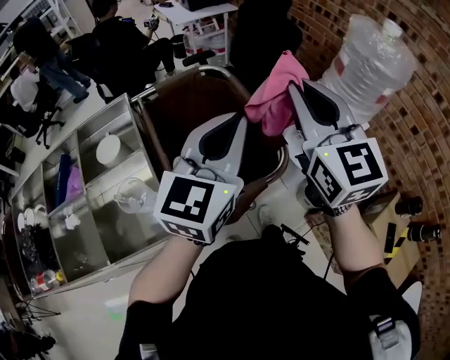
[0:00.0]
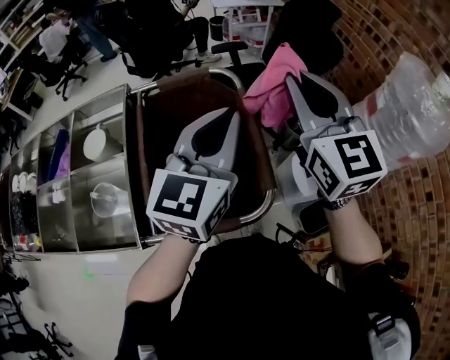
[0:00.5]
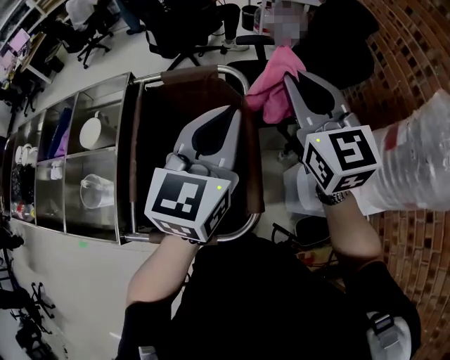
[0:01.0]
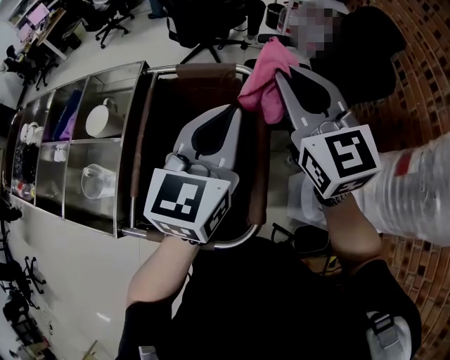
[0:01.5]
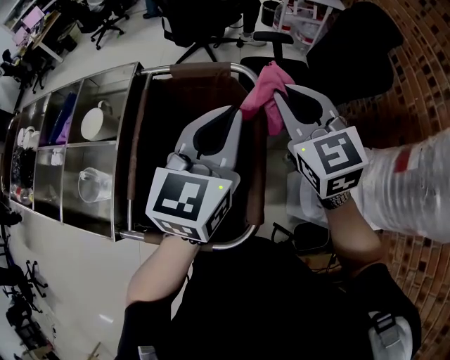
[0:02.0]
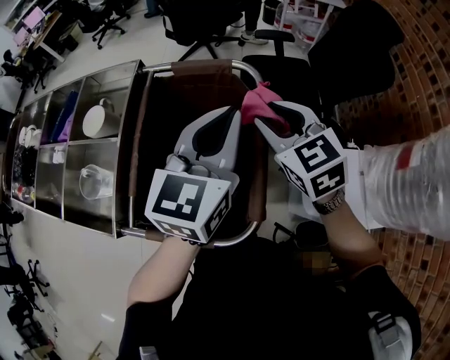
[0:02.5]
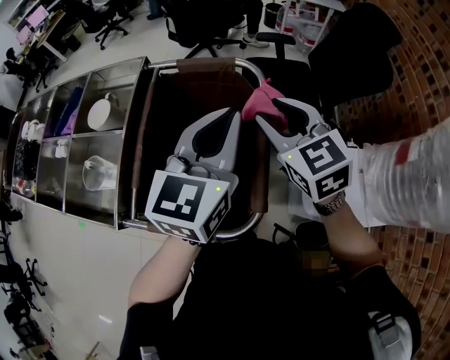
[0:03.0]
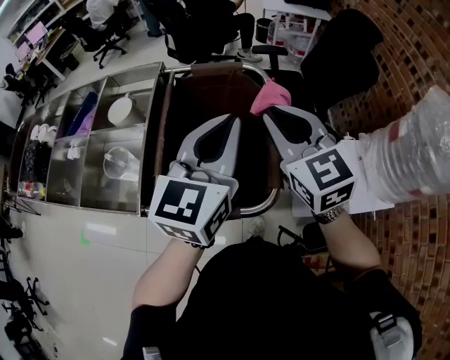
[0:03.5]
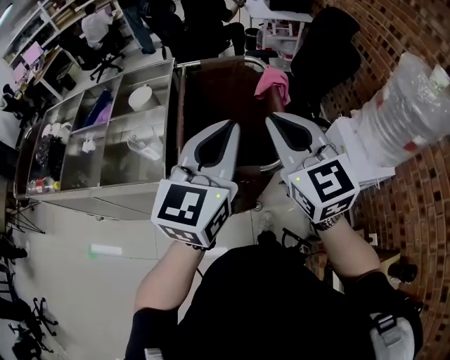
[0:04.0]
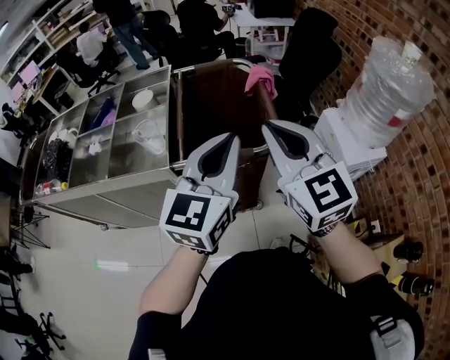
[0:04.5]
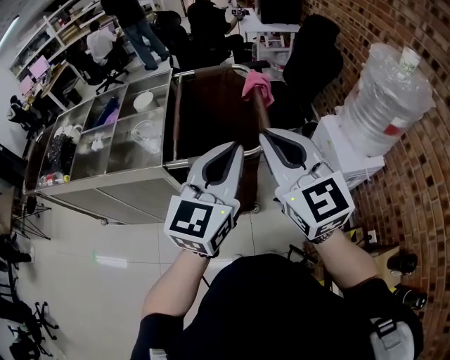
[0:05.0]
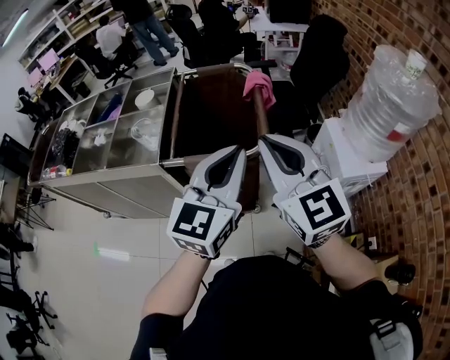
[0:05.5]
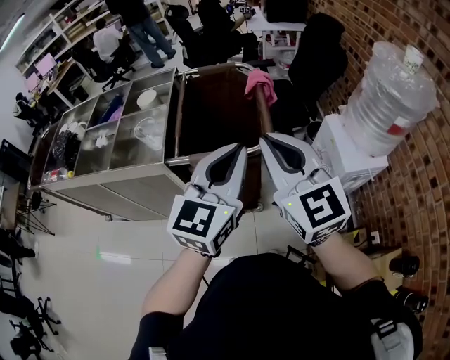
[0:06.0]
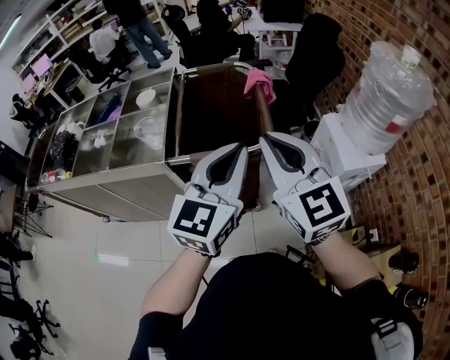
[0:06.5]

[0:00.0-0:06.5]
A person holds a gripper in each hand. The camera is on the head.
0:00.0 to 0:02.0: The left gripper ends up approximately 25 cm from where it was, and turns by about 40 degrees. Meanwhile the right gripper ends up about 30 cm from where it was, and turns by roughly 40 degrees.
0:02.0 to 0:04.5: The grippers both shift backward and to the left by approximately 40 cm. The right gripper opens, then closes again.
0:04.5 to 0:06.5: The left gripper moves roughly 5 cm.

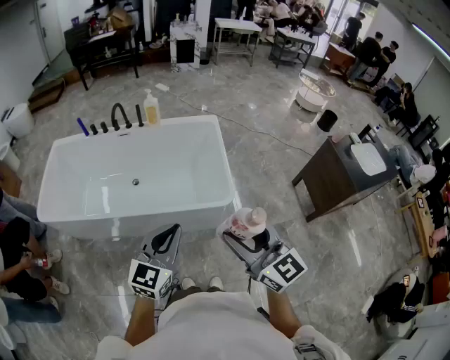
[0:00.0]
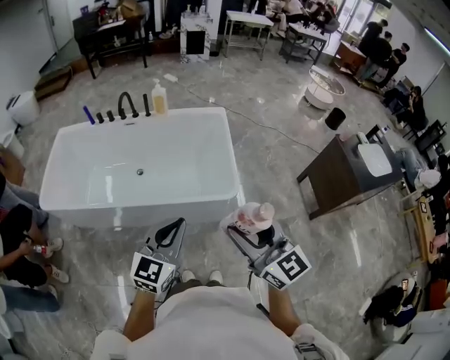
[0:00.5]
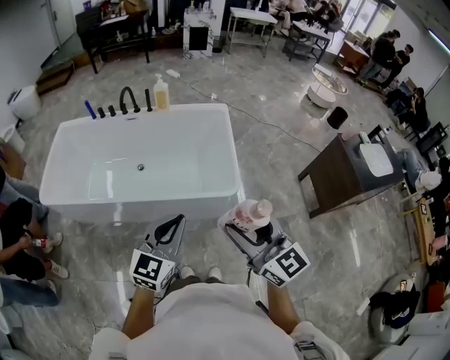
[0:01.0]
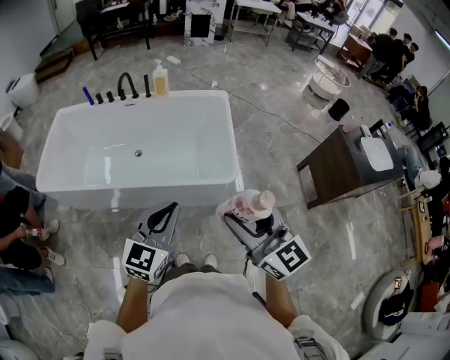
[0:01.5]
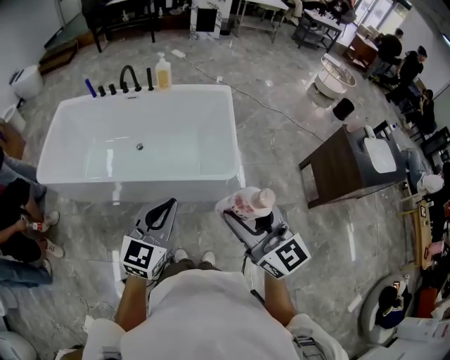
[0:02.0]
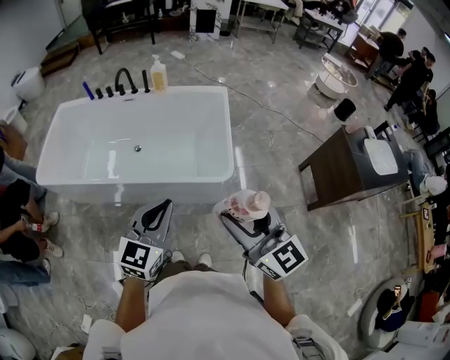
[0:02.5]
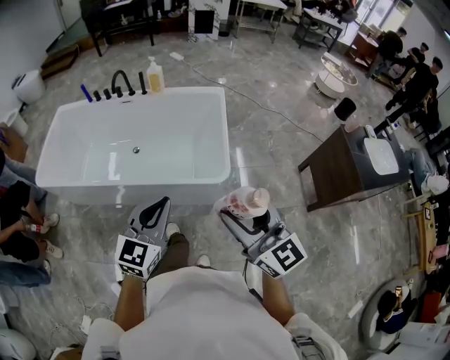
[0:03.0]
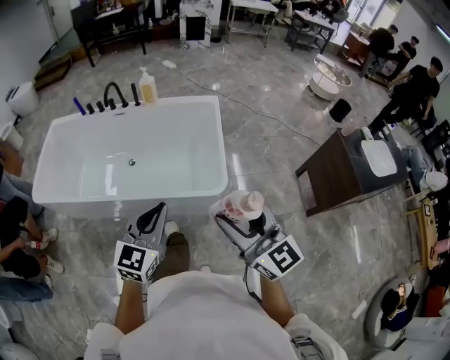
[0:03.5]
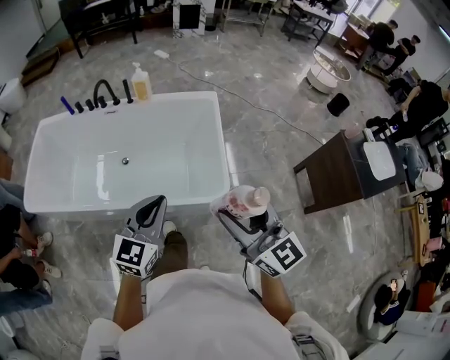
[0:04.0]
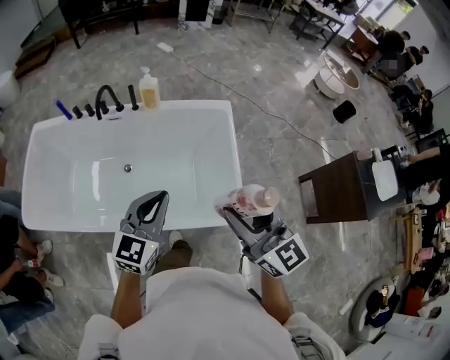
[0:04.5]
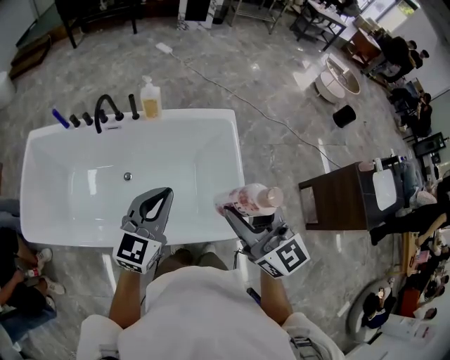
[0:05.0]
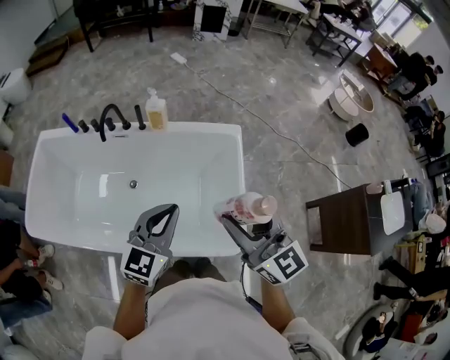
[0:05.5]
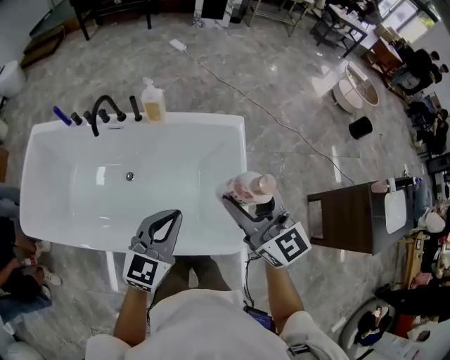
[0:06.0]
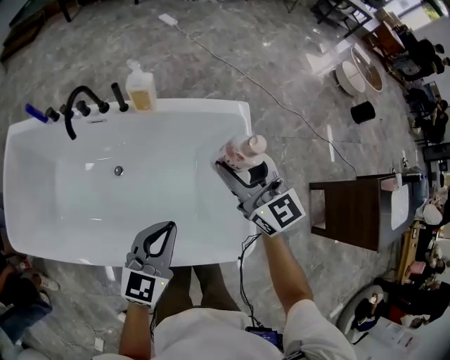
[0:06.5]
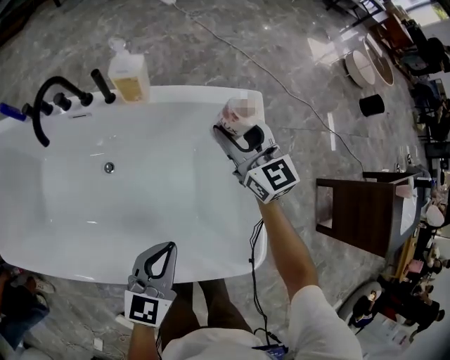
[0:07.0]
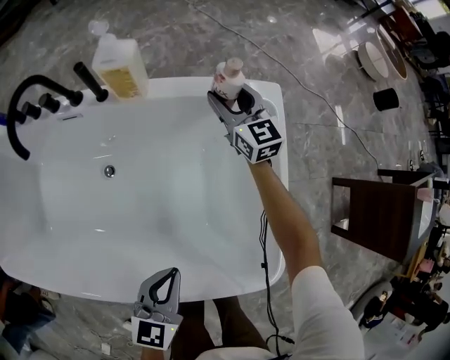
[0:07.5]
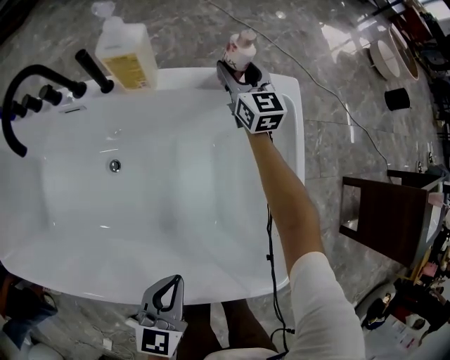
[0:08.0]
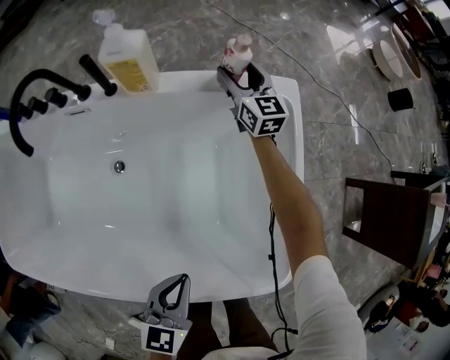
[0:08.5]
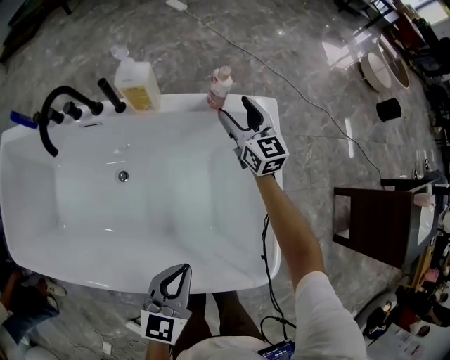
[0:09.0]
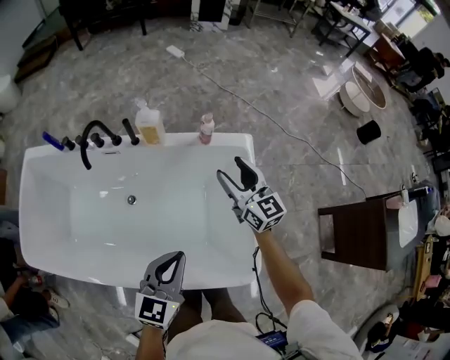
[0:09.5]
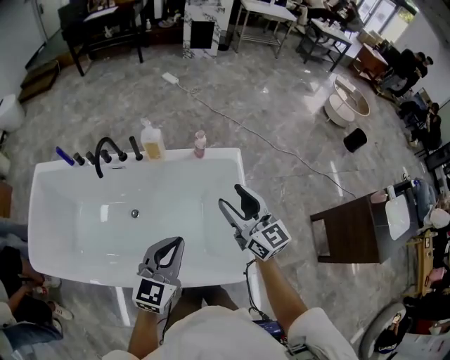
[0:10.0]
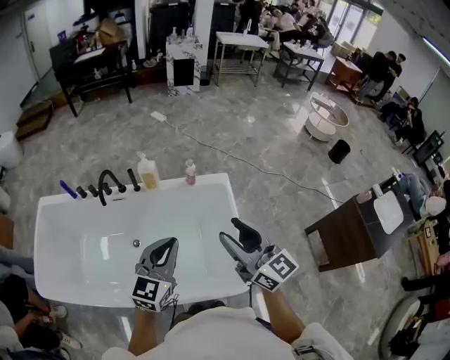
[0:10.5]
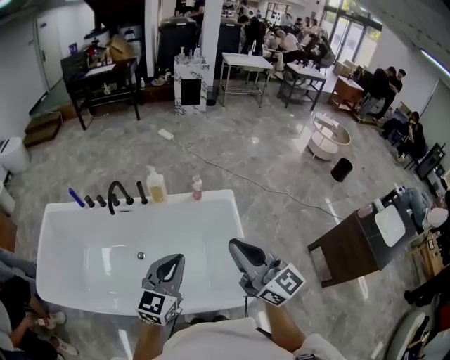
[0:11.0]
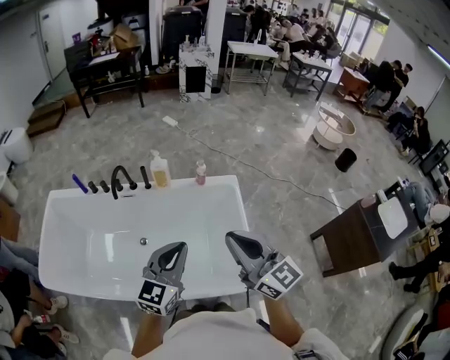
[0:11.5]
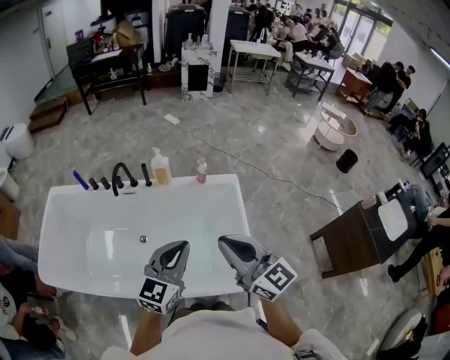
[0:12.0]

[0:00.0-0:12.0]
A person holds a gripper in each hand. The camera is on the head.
0:00.0 to 0:02.0: The two grippers keep their place.
0:02.0 to 0:04.0: Both grippers travel together forward, approximately 15 cm.
0:04.0 to 0:06.0: The two grippers go some 30 cm forward.
0:06.0 to 0:08.0: The left gripper travels downward by roughly 35 cm, and changes its angle by about 30 degrees, while the right gripper heads forward and downward, covering about 70 cm.
0:08.0 to 0:10.0: The right gripper shifts roughly 60 cm upward and backward, while the left gripper travels upward by approximately 35 cm, and changes its angle by about 30 degrees.
0:10.0 to 0:12.0: The right gripper travels backward and upward by some 20 cm, and closes; the left gripper is displaced upward and backward by some 10 cm.

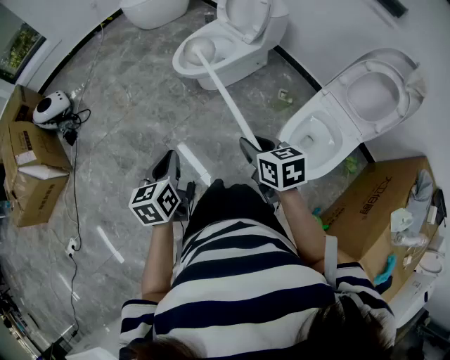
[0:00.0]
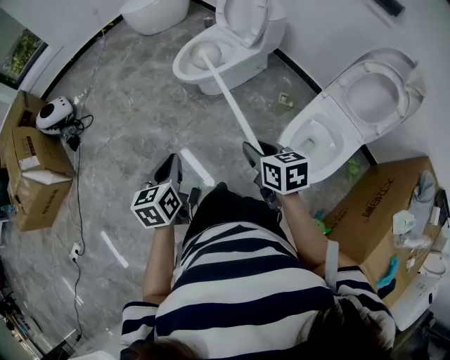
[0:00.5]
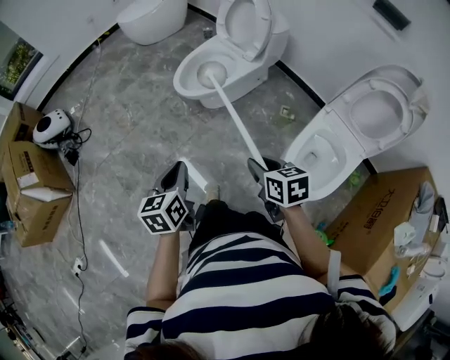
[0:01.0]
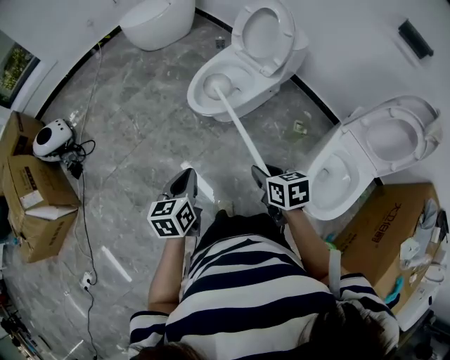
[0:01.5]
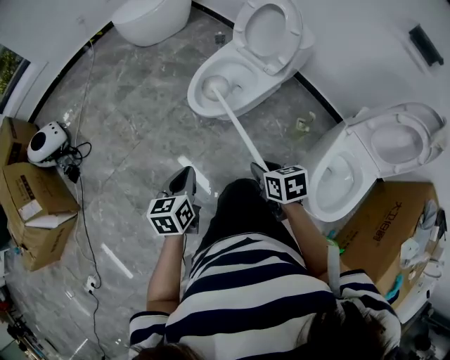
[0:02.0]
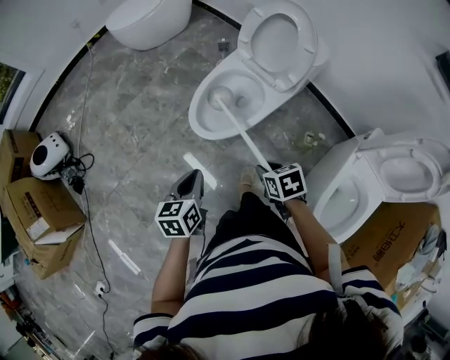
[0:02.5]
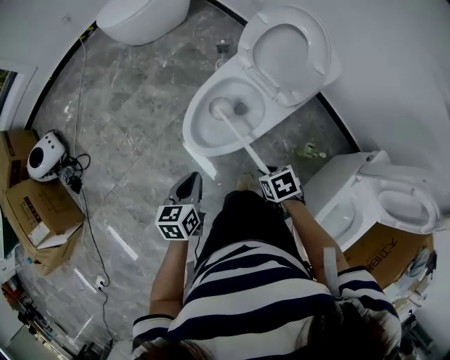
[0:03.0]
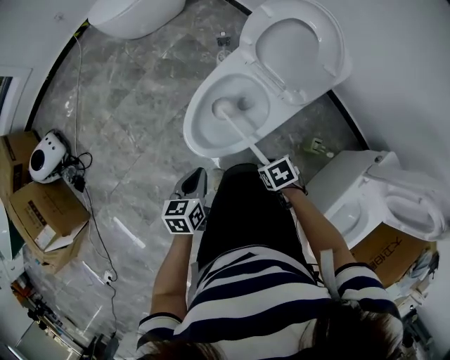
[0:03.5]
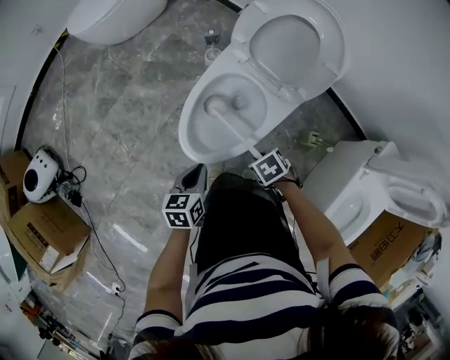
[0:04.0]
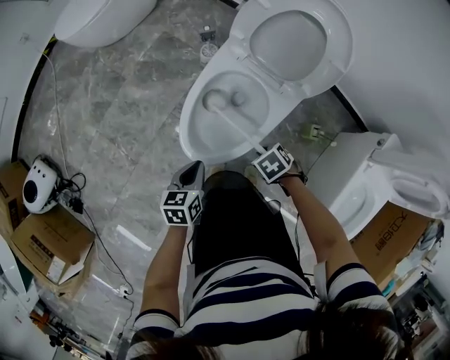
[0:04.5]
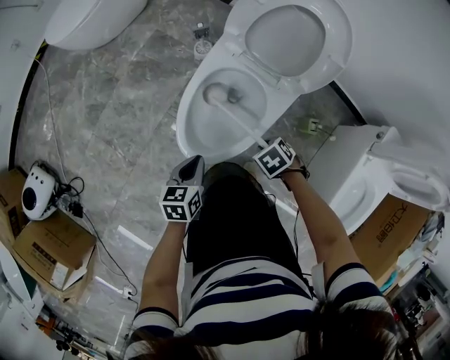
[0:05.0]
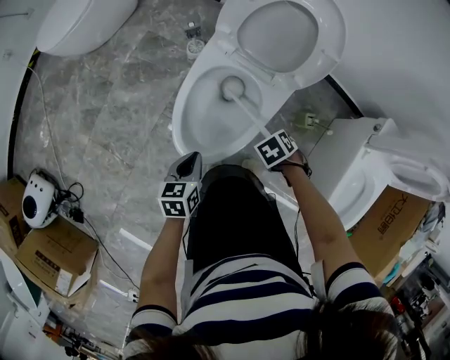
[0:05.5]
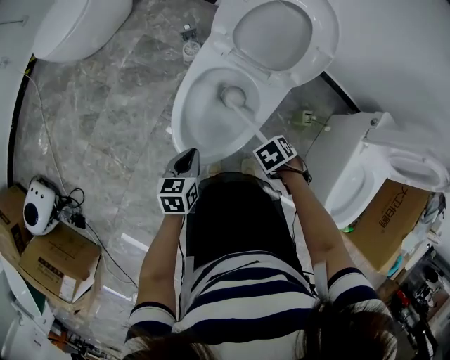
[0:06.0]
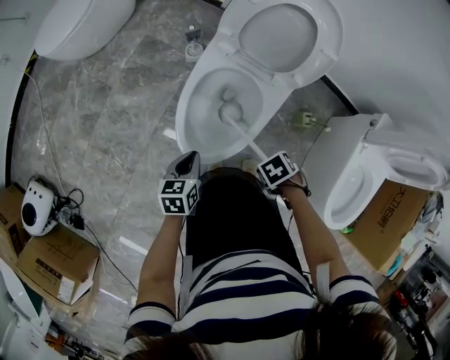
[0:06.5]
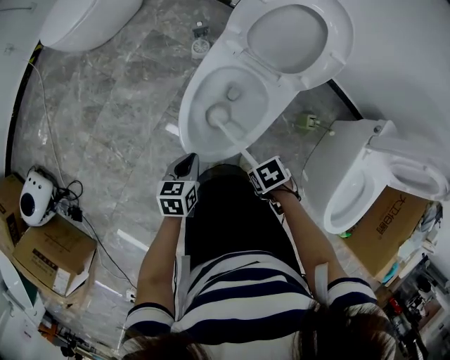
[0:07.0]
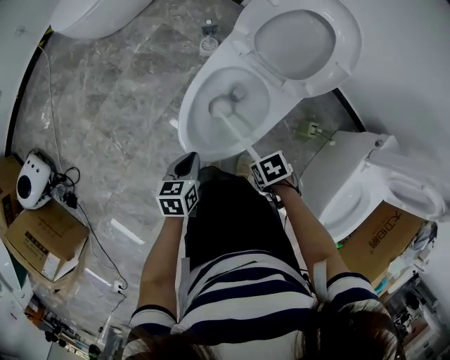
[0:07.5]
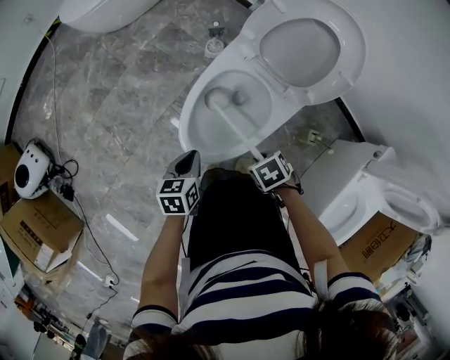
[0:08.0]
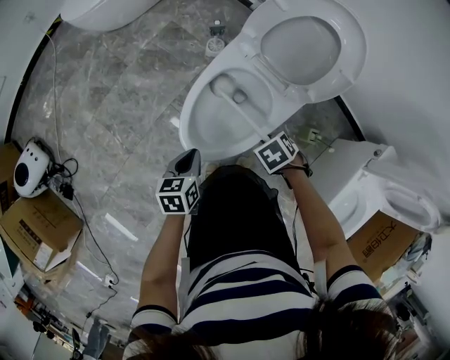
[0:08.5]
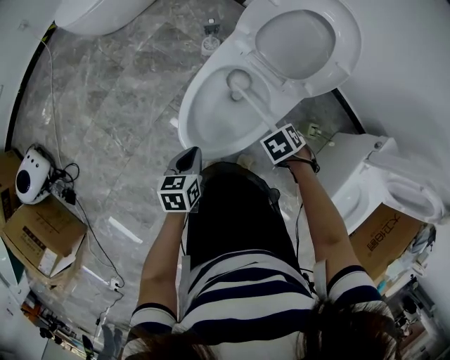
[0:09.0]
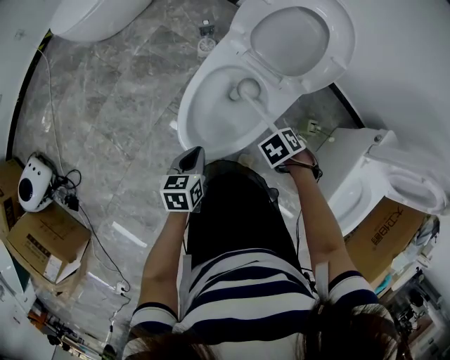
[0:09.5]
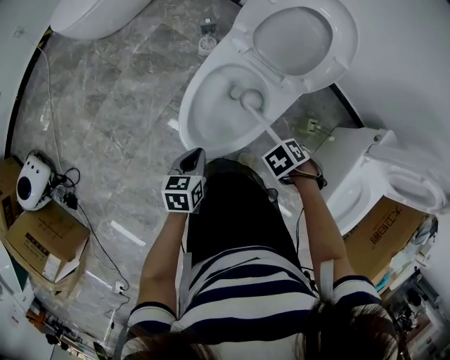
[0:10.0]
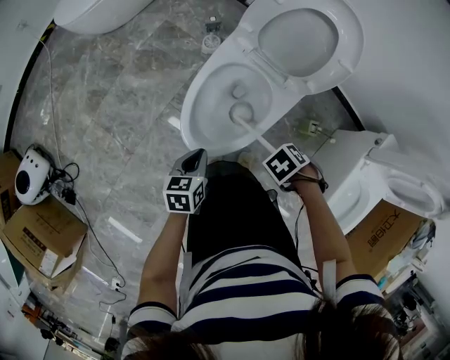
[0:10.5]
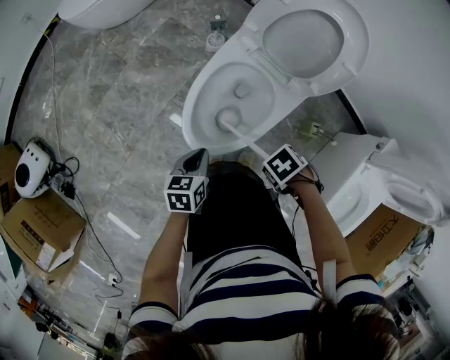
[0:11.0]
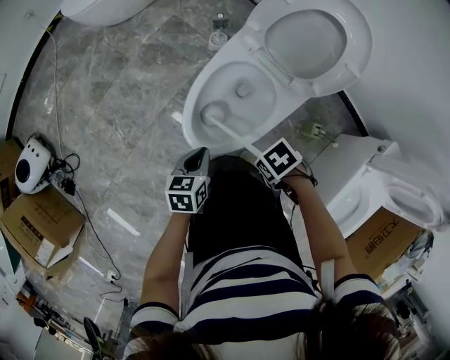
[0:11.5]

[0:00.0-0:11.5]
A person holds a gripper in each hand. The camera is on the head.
0:00.0 to 0:02.0: The left gripper shifts by about 30 cm.
0:02.0 to 0:04.0: The left gripper moves approximately 40 cm.
0:04.0 to 0:06.0: The left gripper ends up approximately 10 cm from where it was.
